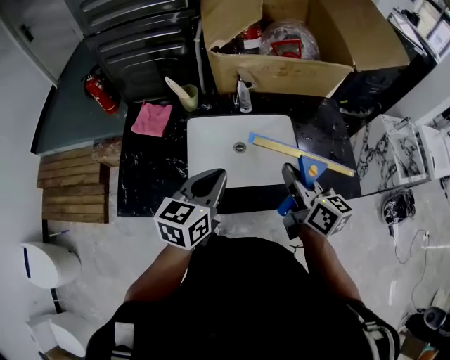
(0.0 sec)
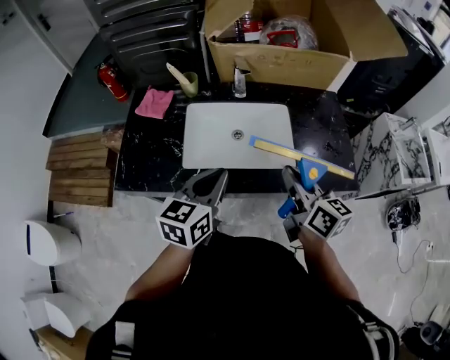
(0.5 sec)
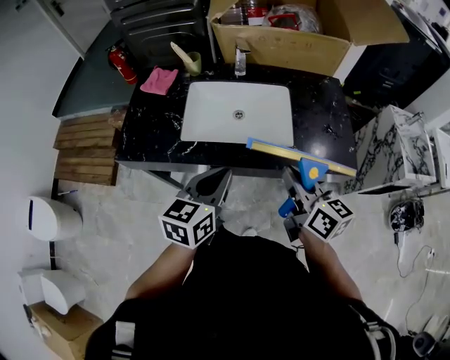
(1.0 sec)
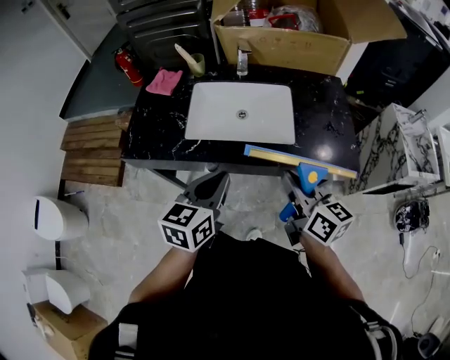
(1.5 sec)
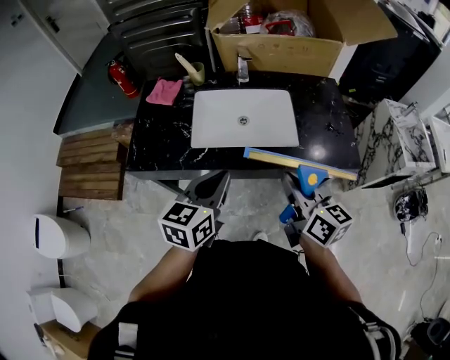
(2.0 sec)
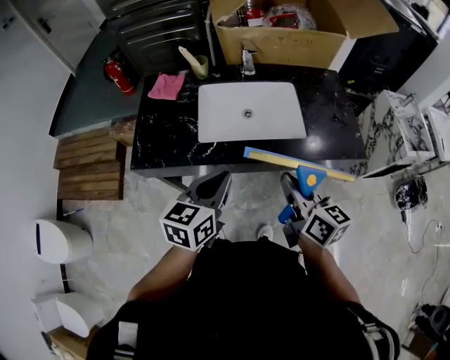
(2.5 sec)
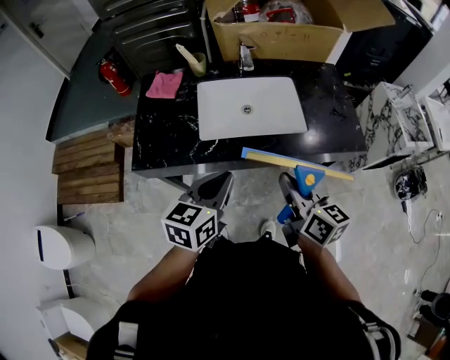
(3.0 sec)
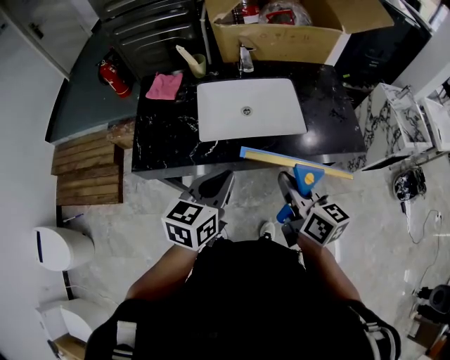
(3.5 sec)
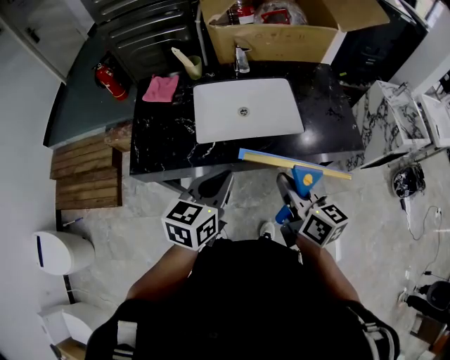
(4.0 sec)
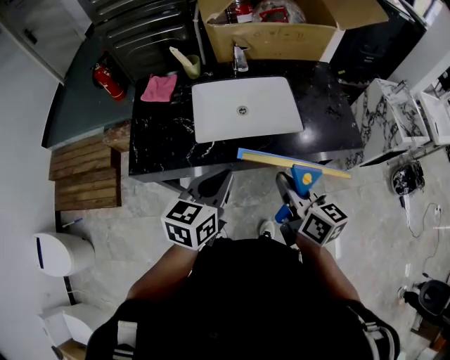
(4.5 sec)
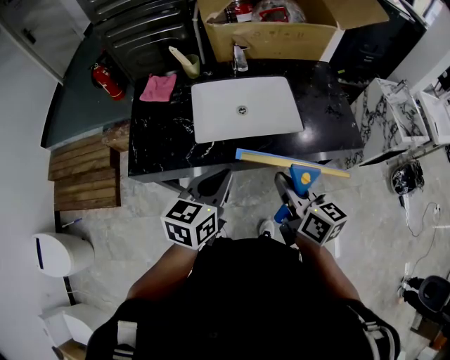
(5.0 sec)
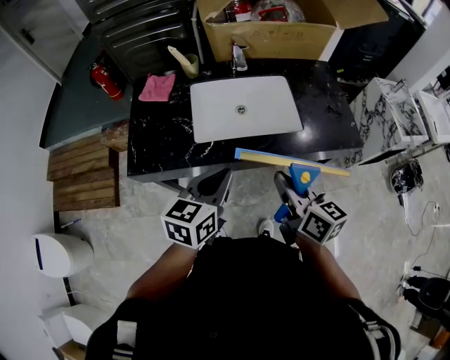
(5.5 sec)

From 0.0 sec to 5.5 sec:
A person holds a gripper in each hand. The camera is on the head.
From 0.0 sec to 2.0 sec: The grippers both shift backward by roughly 15 cm.
From 2.0 sec to 3.5 sec: The right gripper heads to the left, covering roughly 5 cm.
From 3.5 sec to 5.5 sec: Both grippers stay put.

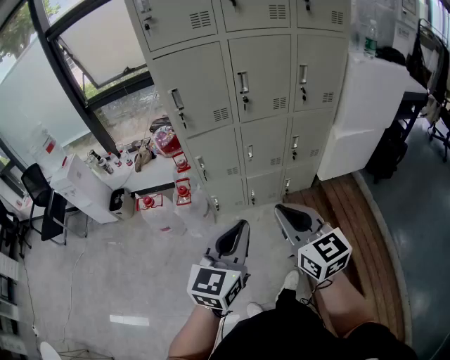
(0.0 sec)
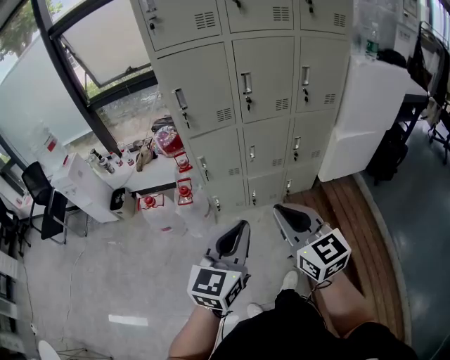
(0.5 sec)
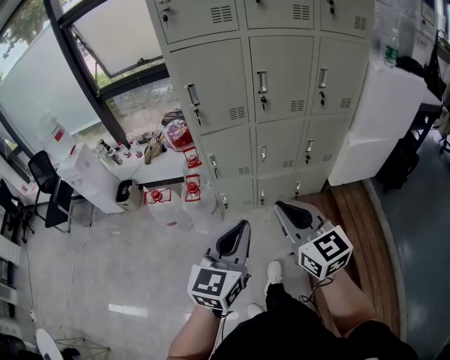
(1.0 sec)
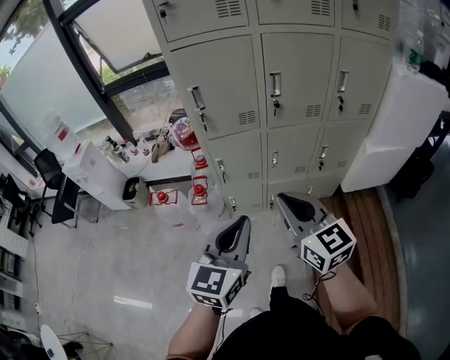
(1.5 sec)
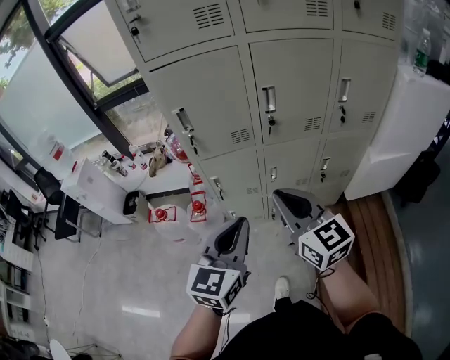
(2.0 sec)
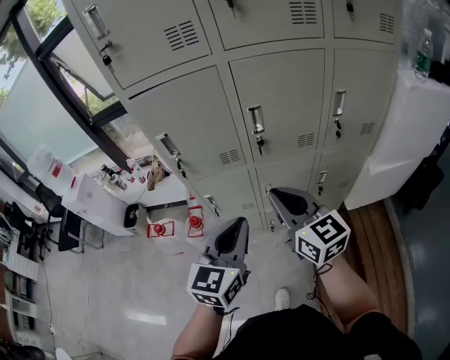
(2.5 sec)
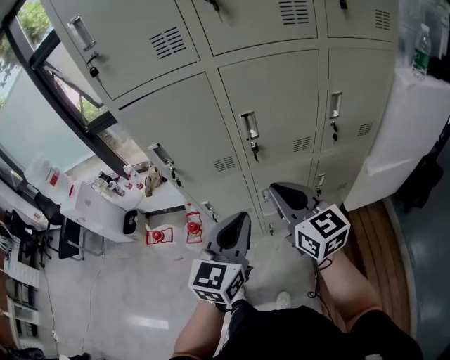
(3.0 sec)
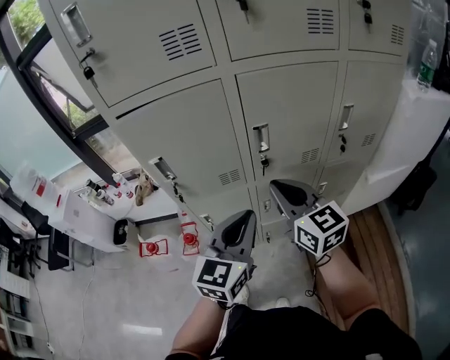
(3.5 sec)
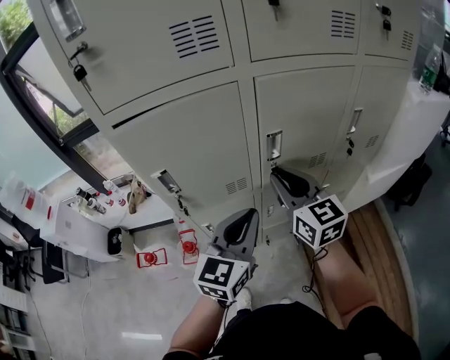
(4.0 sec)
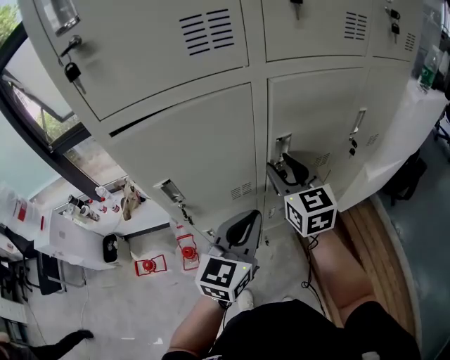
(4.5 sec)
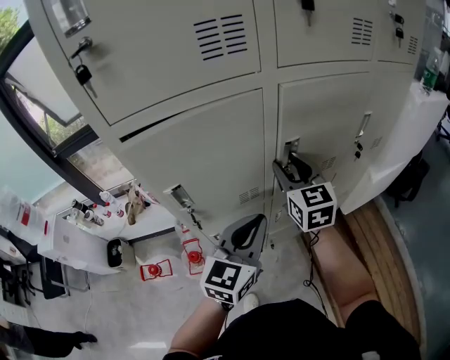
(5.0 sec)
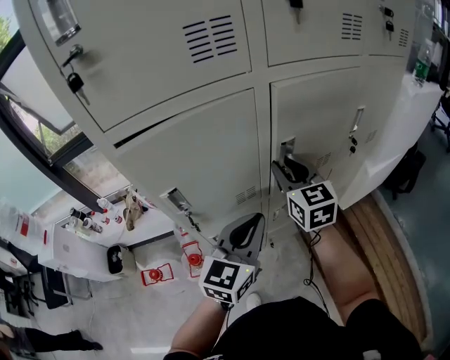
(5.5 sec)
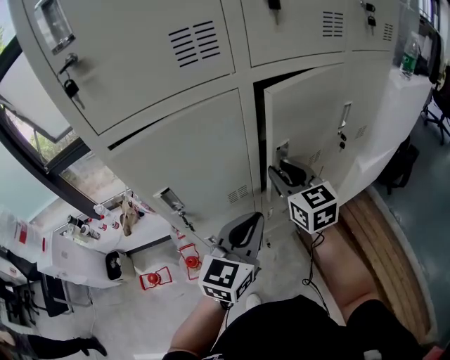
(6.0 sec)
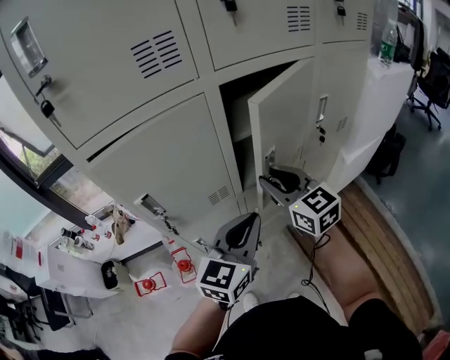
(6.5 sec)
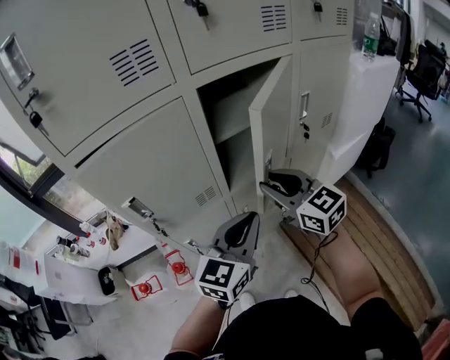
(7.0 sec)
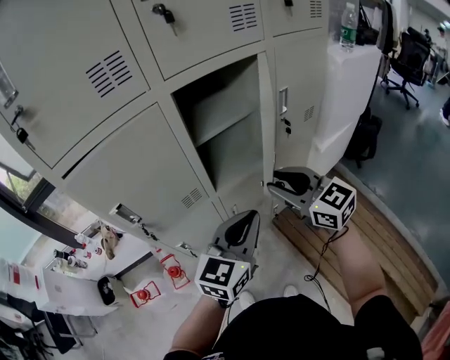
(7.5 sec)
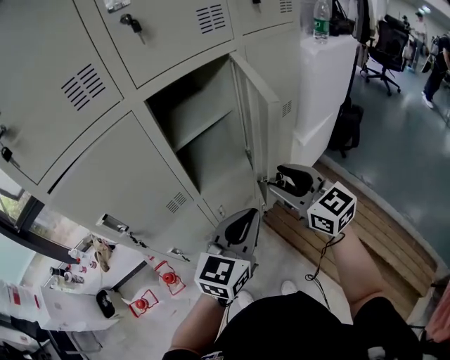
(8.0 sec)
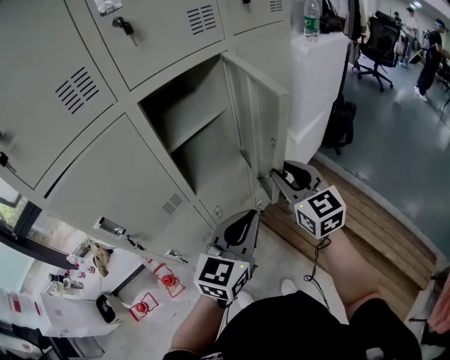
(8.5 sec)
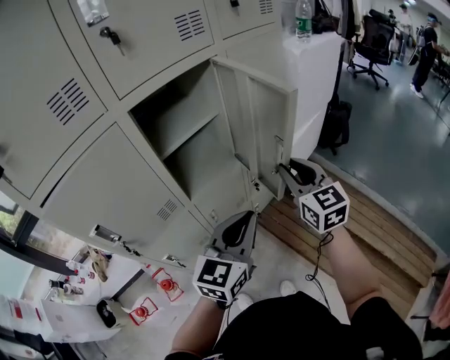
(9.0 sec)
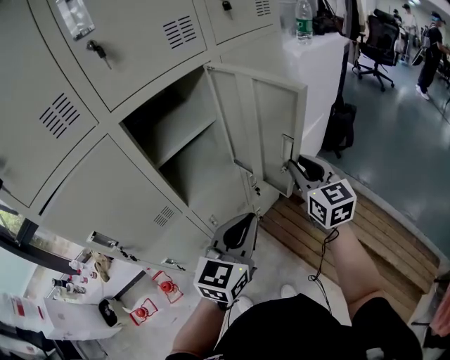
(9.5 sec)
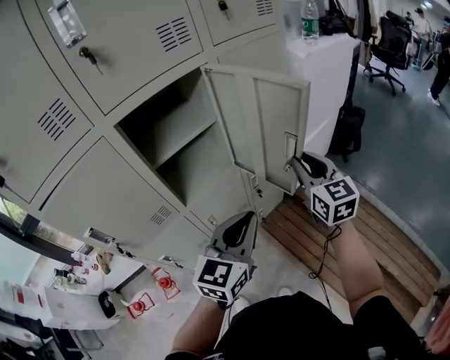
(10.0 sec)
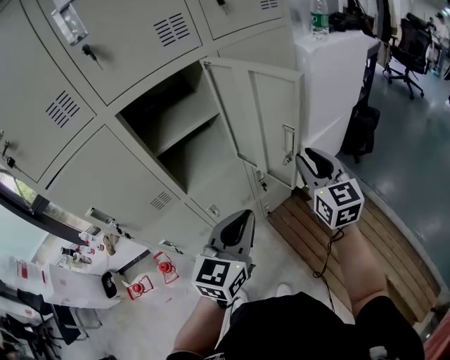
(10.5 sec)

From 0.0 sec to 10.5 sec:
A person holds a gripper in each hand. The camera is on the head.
From 0.0 sec to 2.0 sec: The grippers both shift forward by about 20 cm.
From 2.0 sec to 4.0 sec: The grippers both shift forward by roughly 25 cm.
From 6.5 sec to 8.5 sec: The left gripper travels to the right by some 10 cm. The right gripper is displaced to the right by some 20 cm, and swivels about 30 degrees.
From 8.5 sec to 10.5 sec: The right gripper is displaced to the right and forward by some 15 cm, while the left gripper shifts about 5 cm to the right.

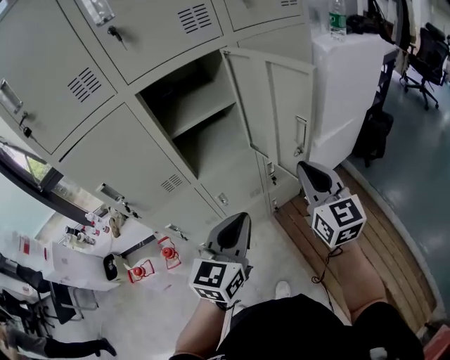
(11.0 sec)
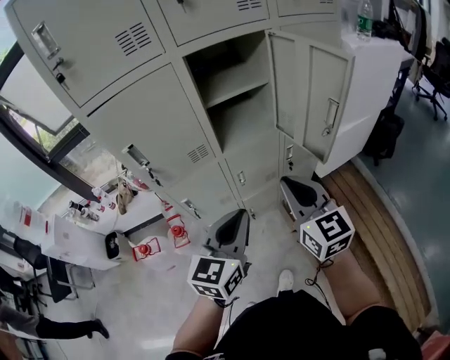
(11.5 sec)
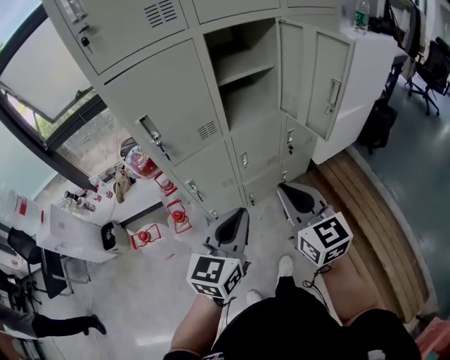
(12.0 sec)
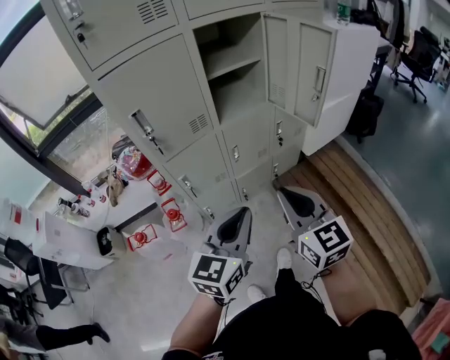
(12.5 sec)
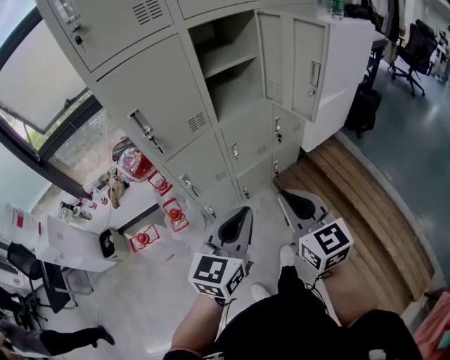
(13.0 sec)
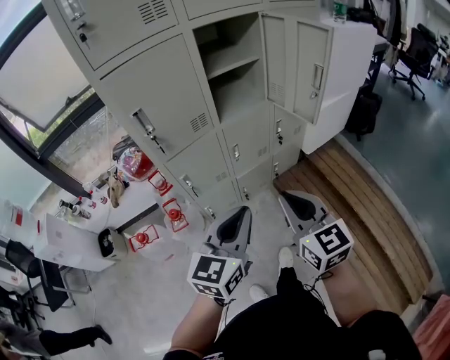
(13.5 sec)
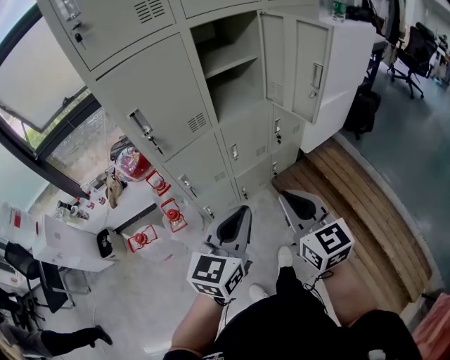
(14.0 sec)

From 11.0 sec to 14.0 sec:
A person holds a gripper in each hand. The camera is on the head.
From 11.0 sec to 12.5 sec: Both grippers move backward and to the left, some 25 cm.
From 12.5 sec to 14.0 sec: There are only small adjustments of the grippers.

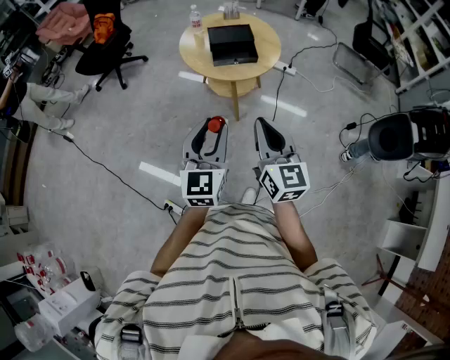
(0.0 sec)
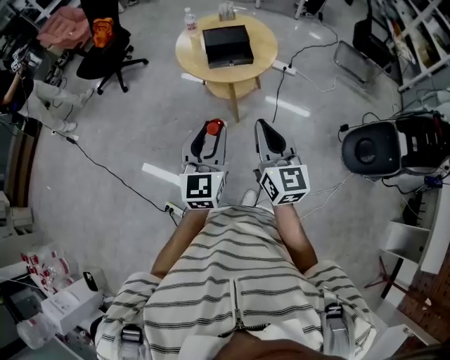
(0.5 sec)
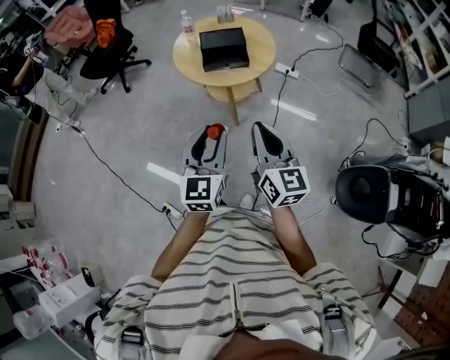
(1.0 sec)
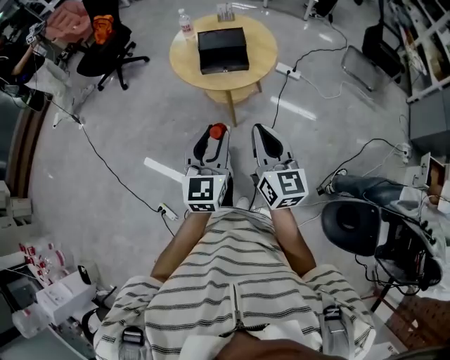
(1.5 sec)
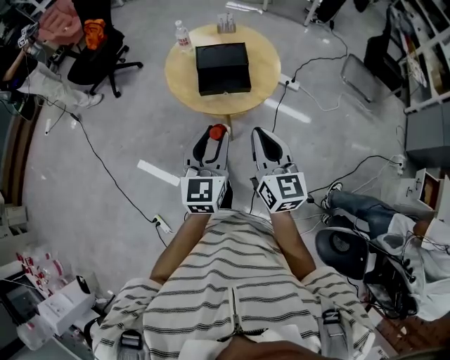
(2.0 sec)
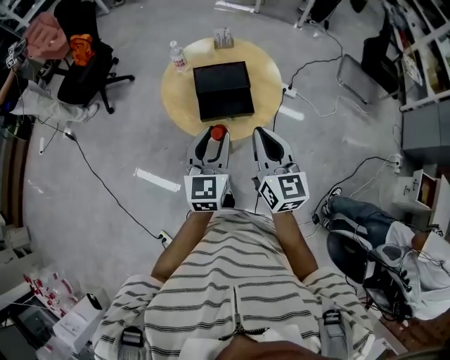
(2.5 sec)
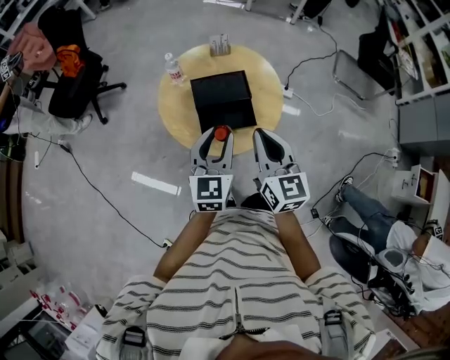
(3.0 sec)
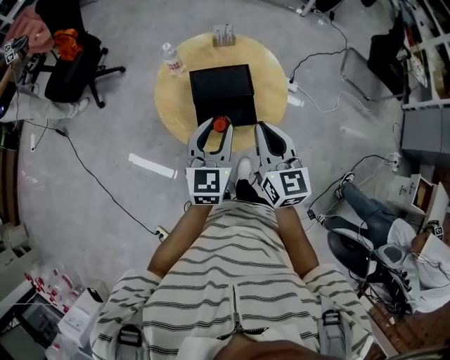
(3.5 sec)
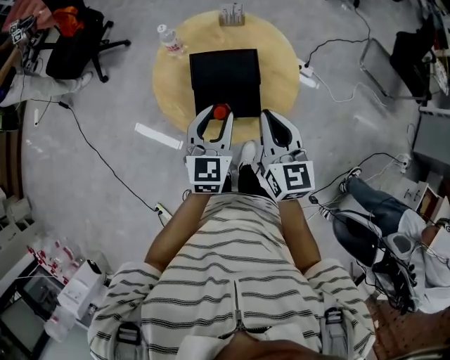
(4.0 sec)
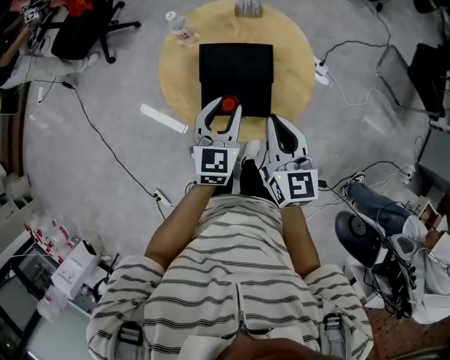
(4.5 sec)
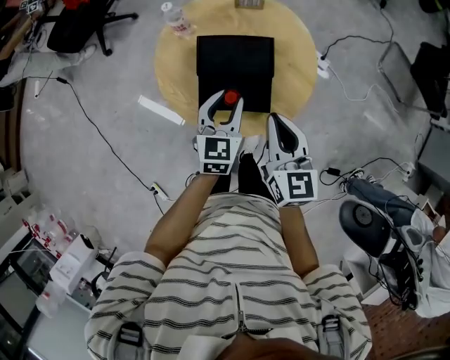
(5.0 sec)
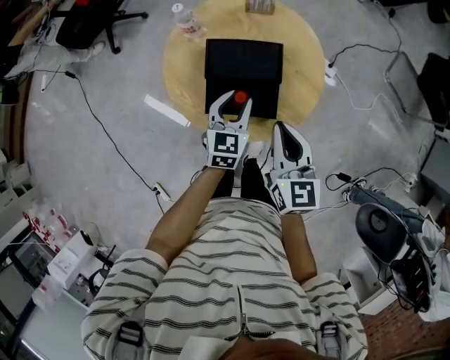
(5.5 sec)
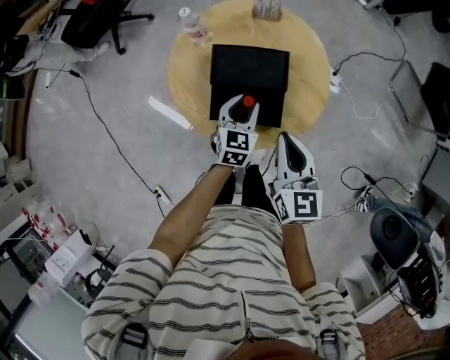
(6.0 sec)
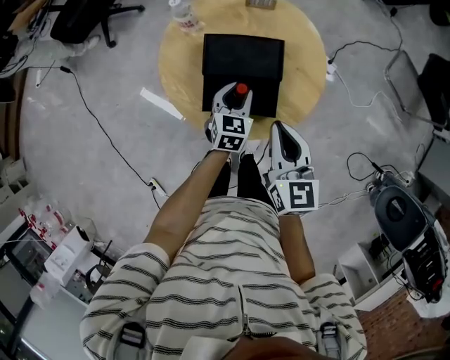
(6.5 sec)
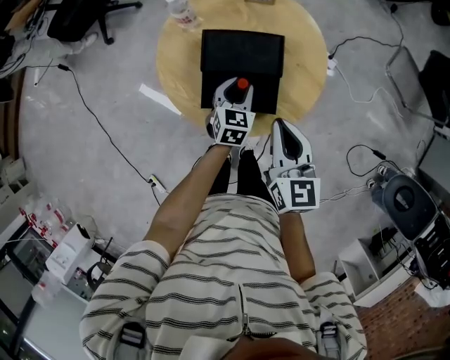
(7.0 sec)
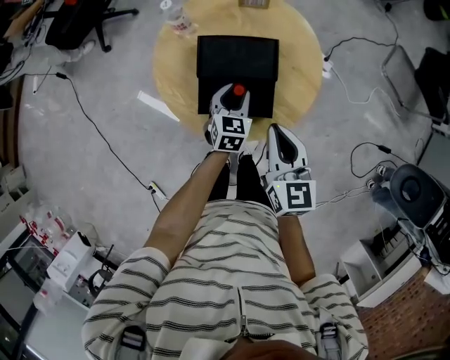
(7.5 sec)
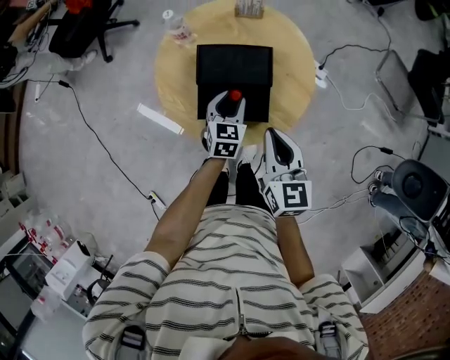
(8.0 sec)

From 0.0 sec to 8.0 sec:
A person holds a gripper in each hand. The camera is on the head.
From 0.0 sec to 2.0 sec: Both grippers move forward and to the right, roughly 25 cm.
From 2.0 sec to 4.0 sec: Both grippers move forward, approximately 30 cm.
From 4.0 sec to 6.0 sec: The left gripper is displaced downward by about 15 cm, while the right gripper travels downward by approximately 5 cm.
From 6.0 sec to 8.0 sec: The grippers move only a little.
